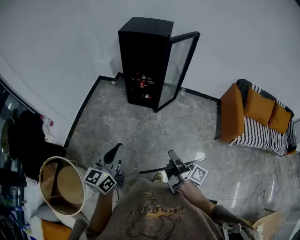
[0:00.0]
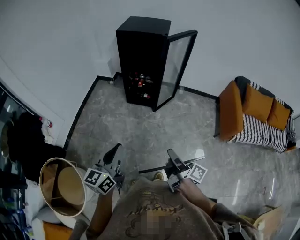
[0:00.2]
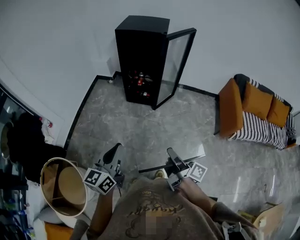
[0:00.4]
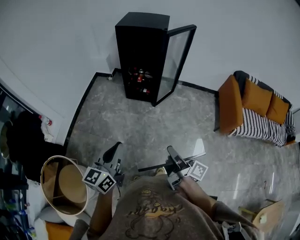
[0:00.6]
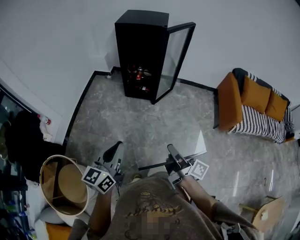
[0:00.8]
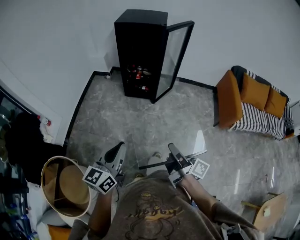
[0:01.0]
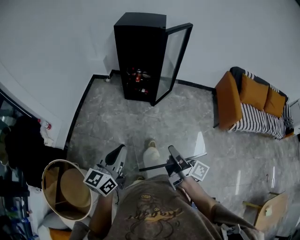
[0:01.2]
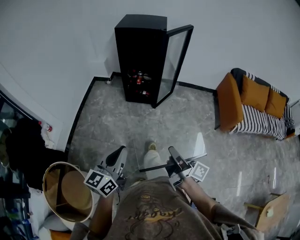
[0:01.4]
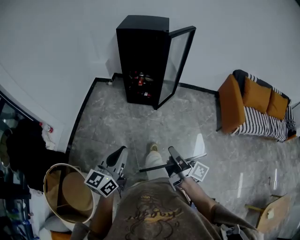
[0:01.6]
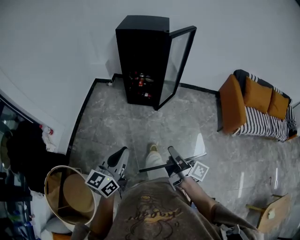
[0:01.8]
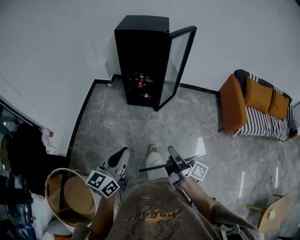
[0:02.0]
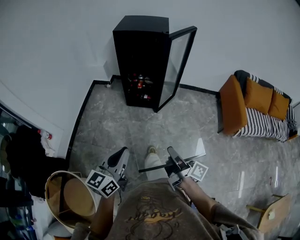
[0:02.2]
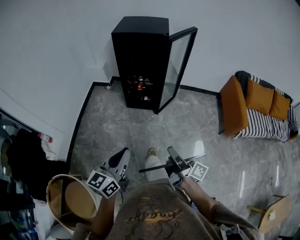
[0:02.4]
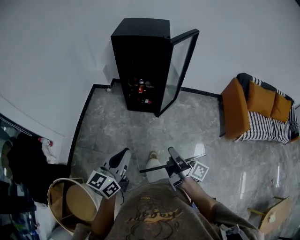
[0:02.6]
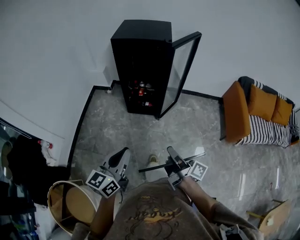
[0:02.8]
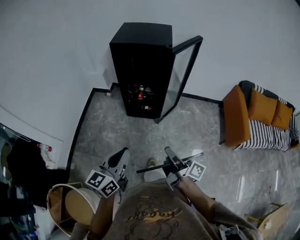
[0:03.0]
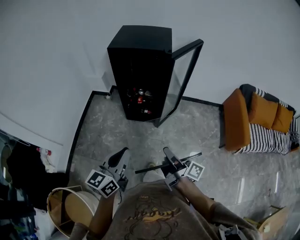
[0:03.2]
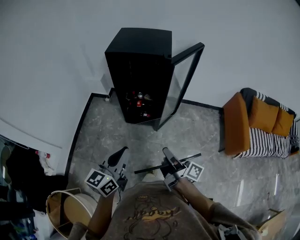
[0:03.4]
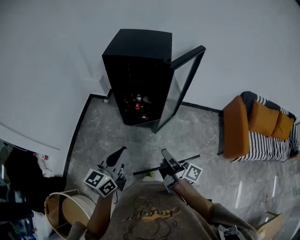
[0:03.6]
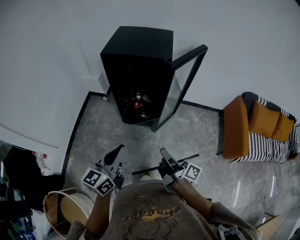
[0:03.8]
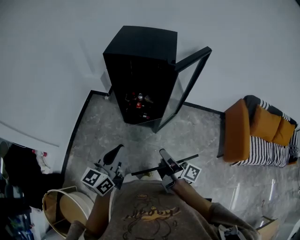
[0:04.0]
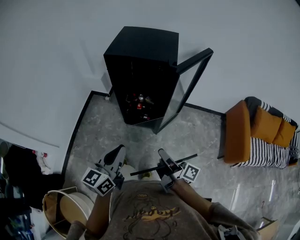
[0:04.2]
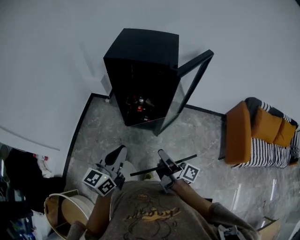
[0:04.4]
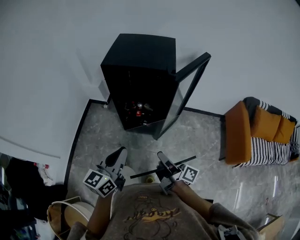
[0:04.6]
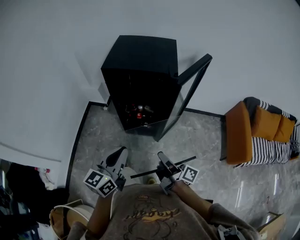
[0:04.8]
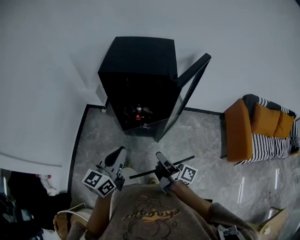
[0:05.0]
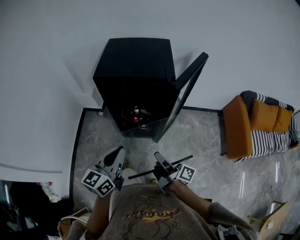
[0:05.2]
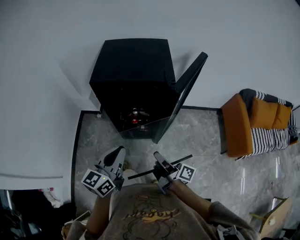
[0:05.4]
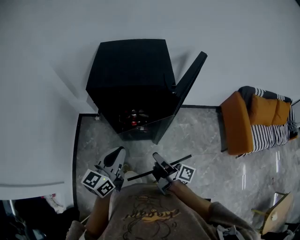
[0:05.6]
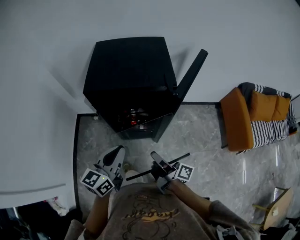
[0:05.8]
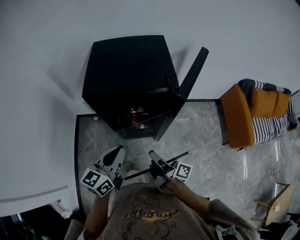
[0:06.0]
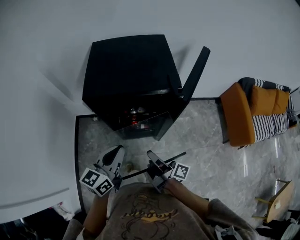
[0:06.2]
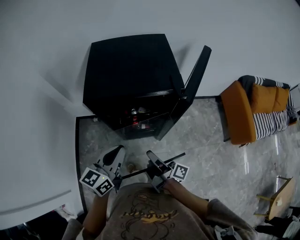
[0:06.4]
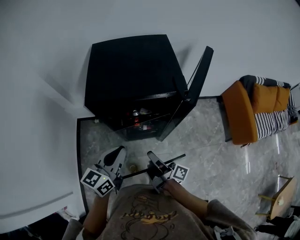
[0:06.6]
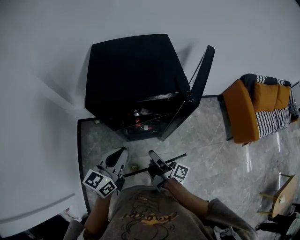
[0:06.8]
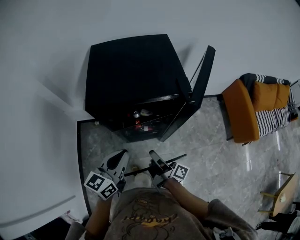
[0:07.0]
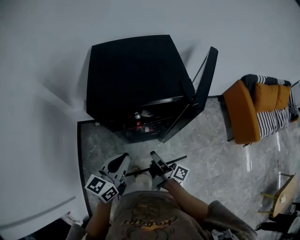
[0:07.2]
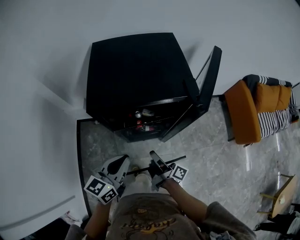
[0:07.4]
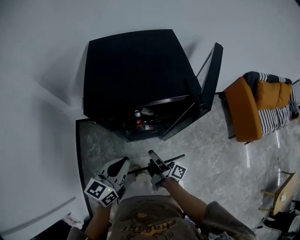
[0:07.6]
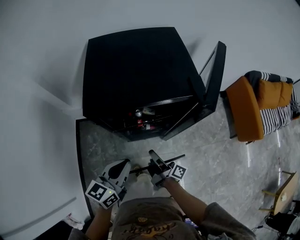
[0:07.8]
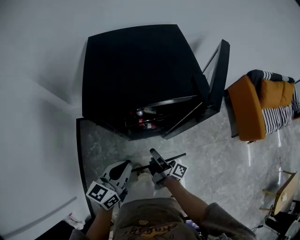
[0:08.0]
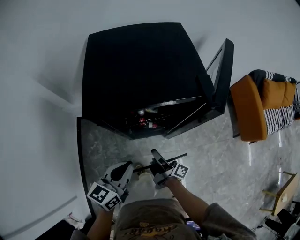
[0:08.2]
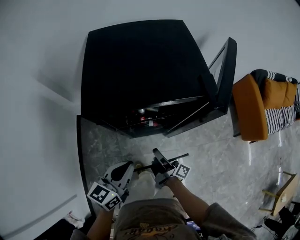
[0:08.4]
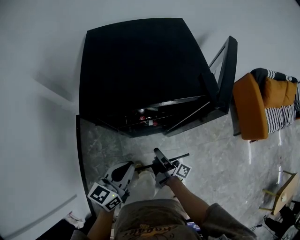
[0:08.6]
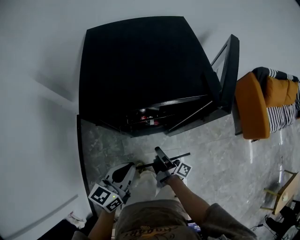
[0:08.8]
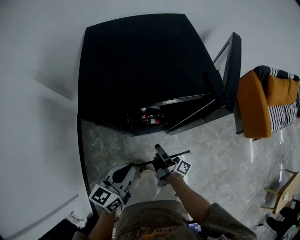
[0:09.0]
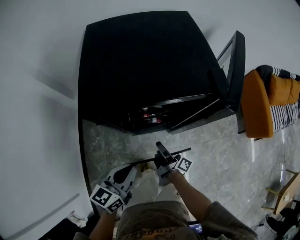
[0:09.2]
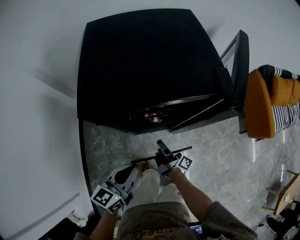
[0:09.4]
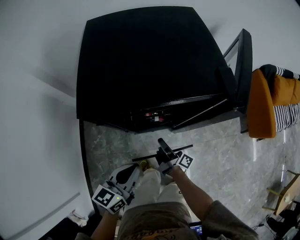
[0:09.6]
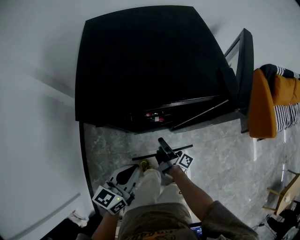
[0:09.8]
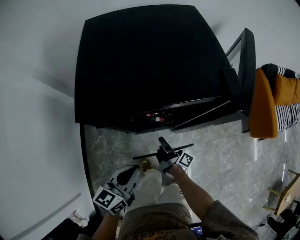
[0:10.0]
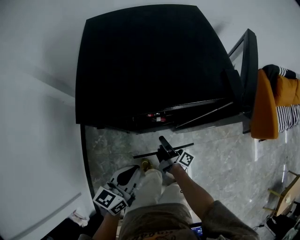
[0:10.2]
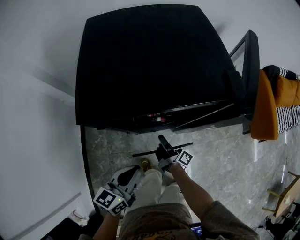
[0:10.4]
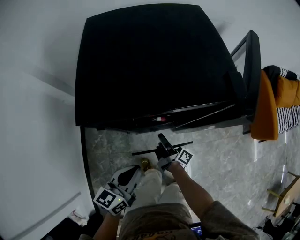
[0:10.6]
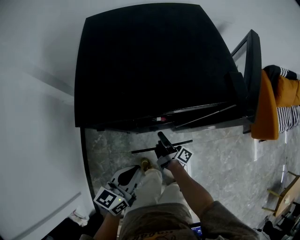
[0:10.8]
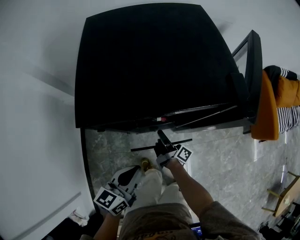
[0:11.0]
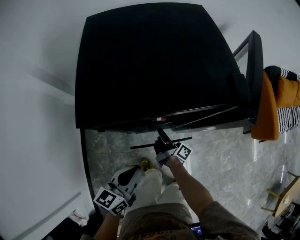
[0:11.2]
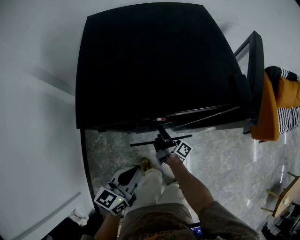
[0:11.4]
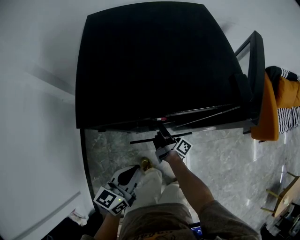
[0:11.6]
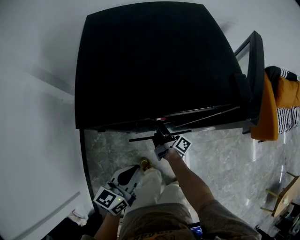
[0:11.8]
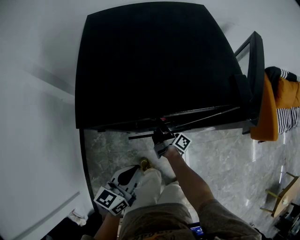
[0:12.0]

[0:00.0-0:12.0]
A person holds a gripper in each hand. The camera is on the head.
0:00.0 to 0:01.6: The left gripper shifts by approximately 5 cm.
0:01.6 to 0:03.0: The left gripper ends up roughly 20 cm from where it was.
0:03.0 to 0:04.4: The left gripper moves some 20 cm.
0:04.4 to 0:06.0: The left gripper ends up about 20 cm from where it was.
0:06.0 to 0:07.6: The left gripper travels downward by roughly 5 cm.
0:07.6 to 0:09.0: The left gripper is displaced downward by roughly 5 cm.

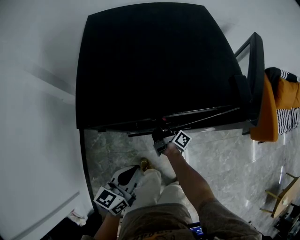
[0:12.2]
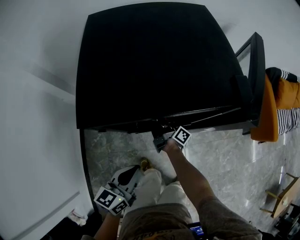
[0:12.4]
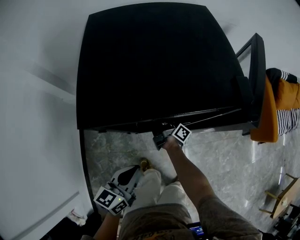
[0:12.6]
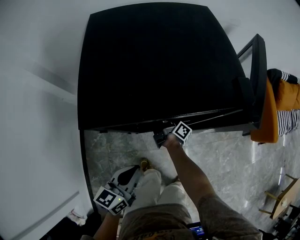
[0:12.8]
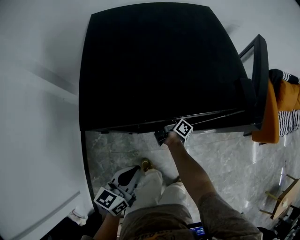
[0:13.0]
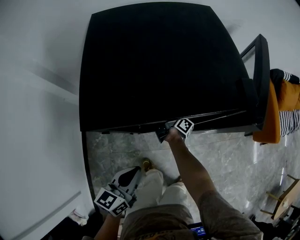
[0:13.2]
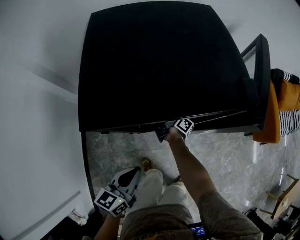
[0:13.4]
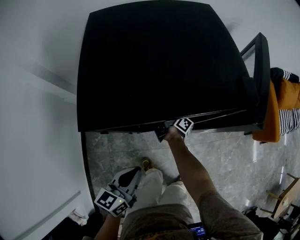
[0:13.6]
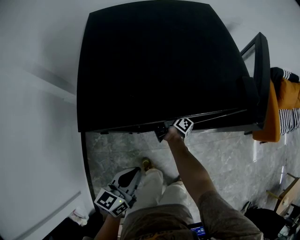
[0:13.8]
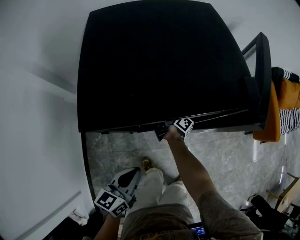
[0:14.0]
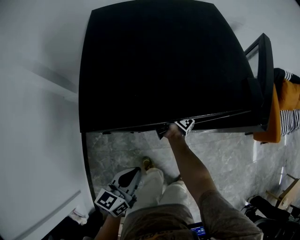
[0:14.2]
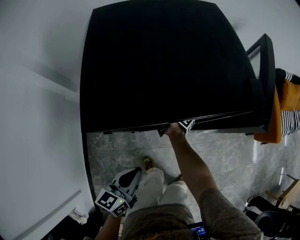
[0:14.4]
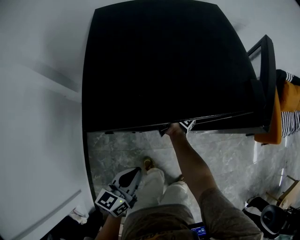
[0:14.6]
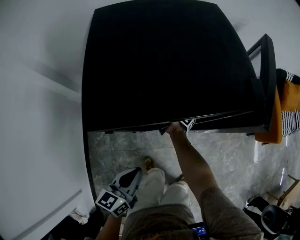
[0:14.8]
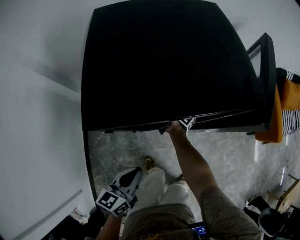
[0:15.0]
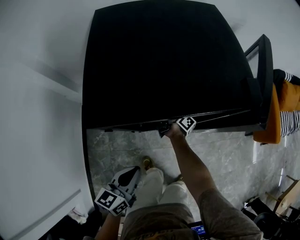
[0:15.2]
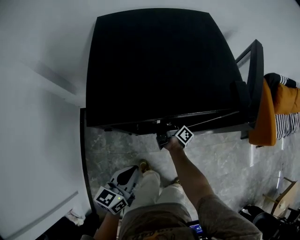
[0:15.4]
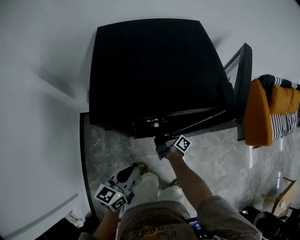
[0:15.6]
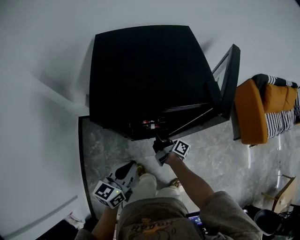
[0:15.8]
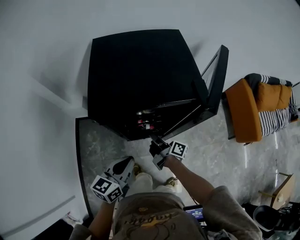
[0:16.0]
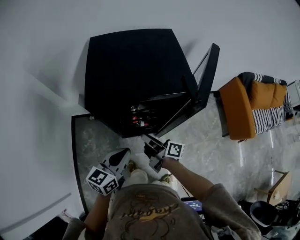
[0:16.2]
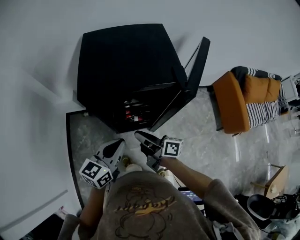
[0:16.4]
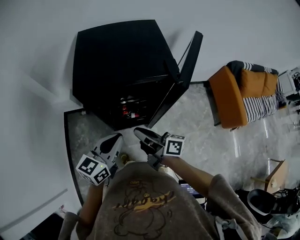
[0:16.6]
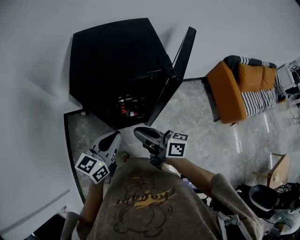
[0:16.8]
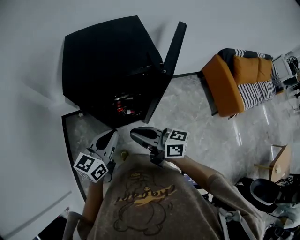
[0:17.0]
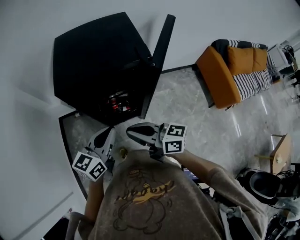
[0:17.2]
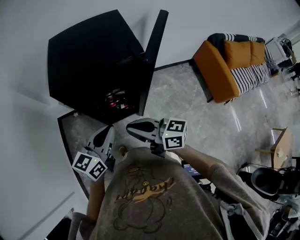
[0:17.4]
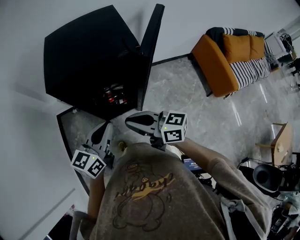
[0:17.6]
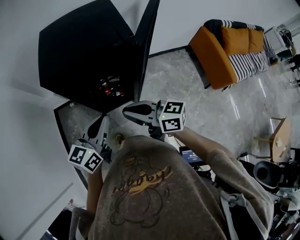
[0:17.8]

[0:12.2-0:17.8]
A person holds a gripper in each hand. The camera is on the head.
0:15.0 to 0:16.4: The left gripper goes roughly 15 cm upward.
0:16.4 to 0:17.8: The left gripper ends up roughly 10 cm from where it was.

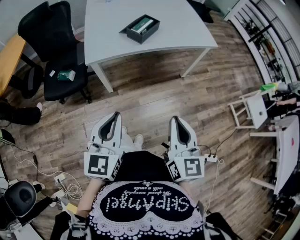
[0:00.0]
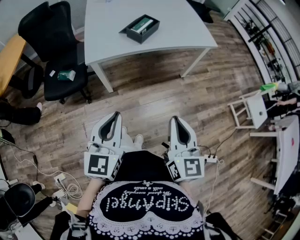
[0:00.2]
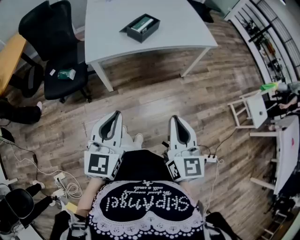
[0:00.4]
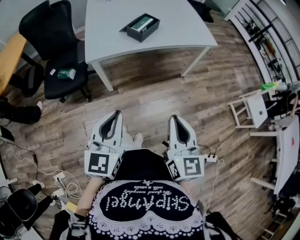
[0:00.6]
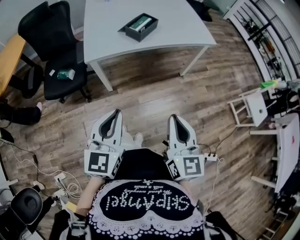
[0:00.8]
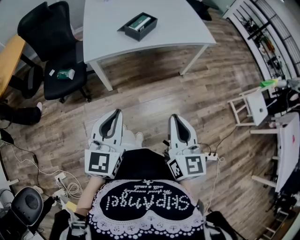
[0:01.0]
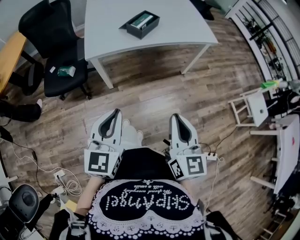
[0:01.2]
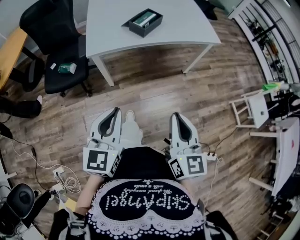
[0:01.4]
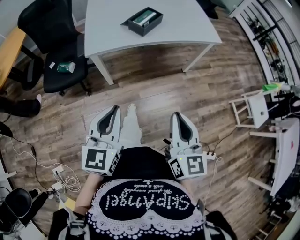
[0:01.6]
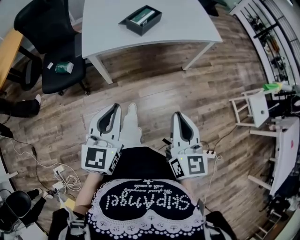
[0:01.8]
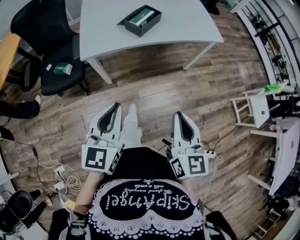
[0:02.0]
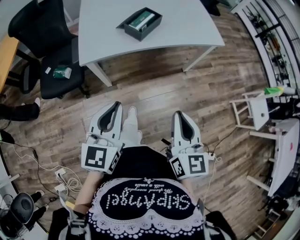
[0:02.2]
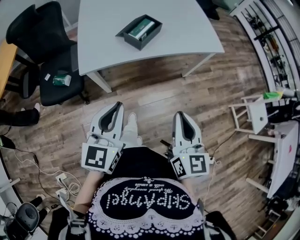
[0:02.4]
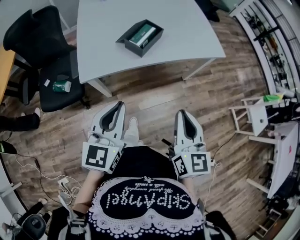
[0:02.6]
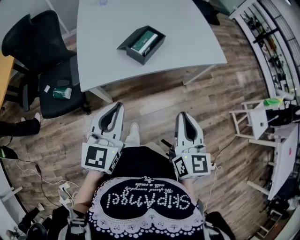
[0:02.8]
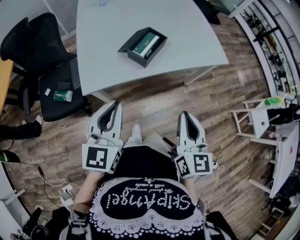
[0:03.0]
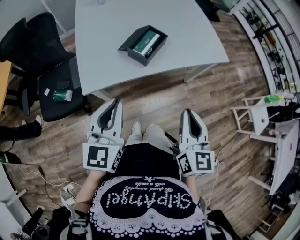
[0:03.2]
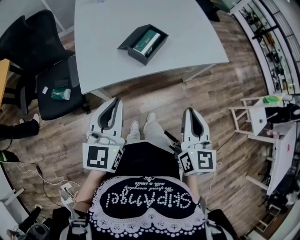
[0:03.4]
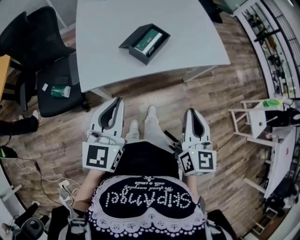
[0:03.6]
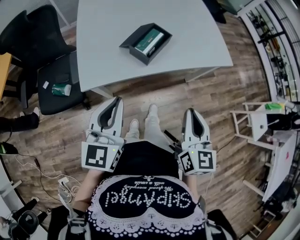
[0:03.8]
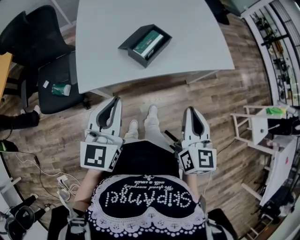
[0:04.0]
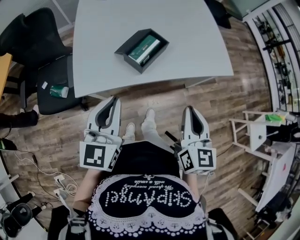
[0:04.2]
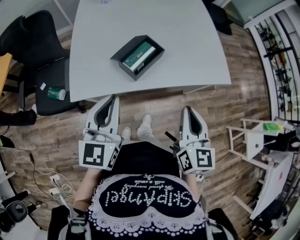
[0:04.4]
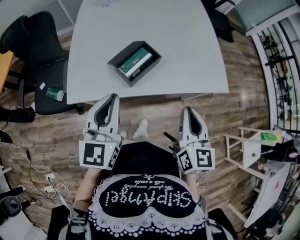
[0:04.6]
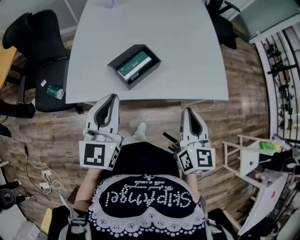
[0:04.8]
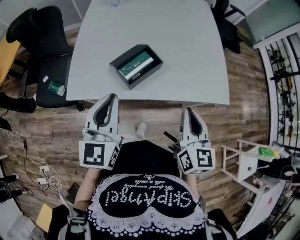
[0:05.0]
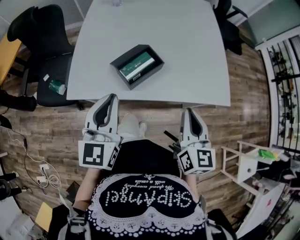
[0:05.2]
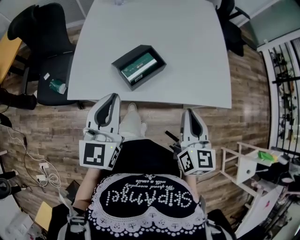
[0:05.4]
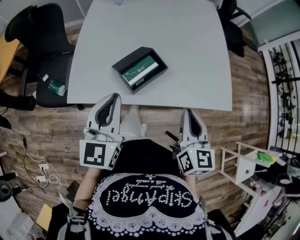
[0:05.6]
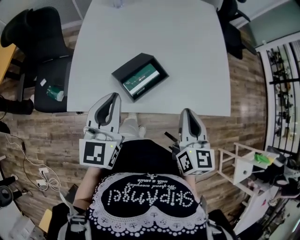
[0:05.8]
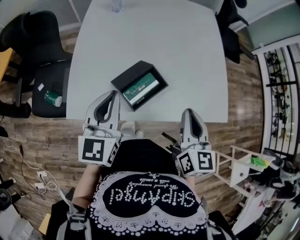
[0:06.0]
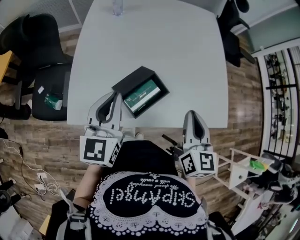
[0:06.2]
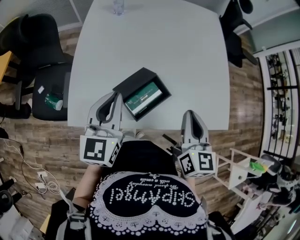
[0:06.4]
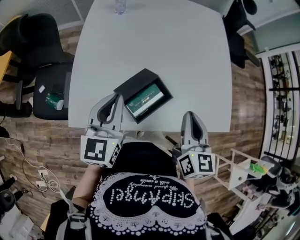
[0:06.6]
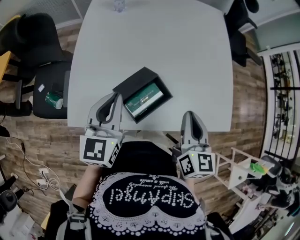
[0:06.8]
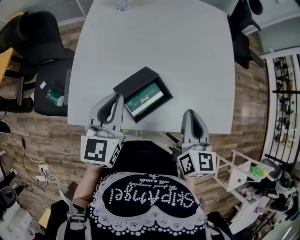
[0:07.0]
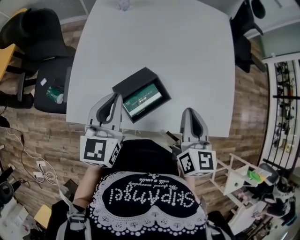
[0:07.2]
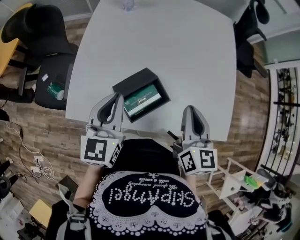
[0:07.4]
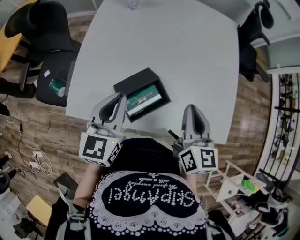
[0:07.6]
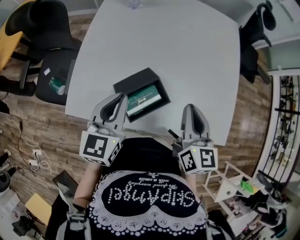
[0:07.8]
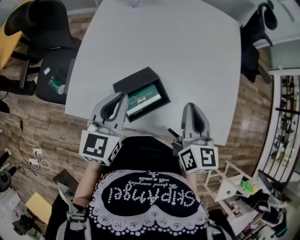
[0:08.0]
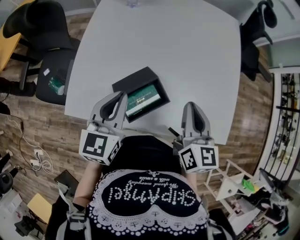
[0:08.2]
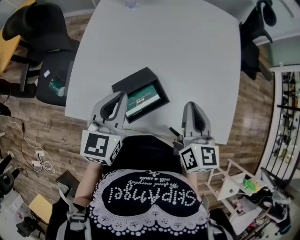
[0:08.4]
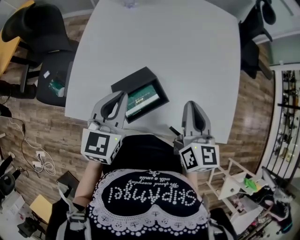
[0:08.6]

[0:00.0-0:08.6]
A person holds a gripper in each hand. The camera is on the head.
0:00.0 to 0:01.4: The grippers stay close to where they were, moving slightly.
0:01.4 to 0:02.8: The two grippers go approximately 20 cm forward.
0:02.8 to 0:04.4: The grippers both shift forward by roughly 15 cm.
0:04.4 to 0:05.8: The grippers both shift forward by about 10 cm.
0:05.8 to 0:07.2: Both grippers travel together forward, about 10 cm.
0:07.2 to 0:08.6: The grippers move only a little.
